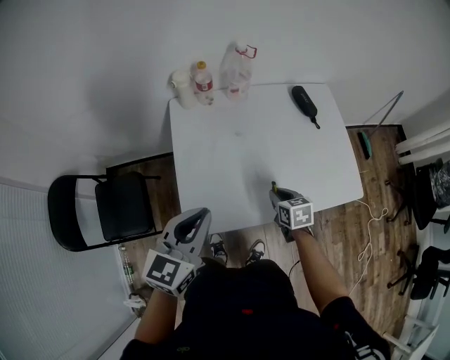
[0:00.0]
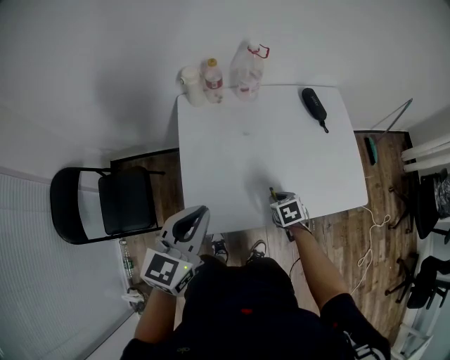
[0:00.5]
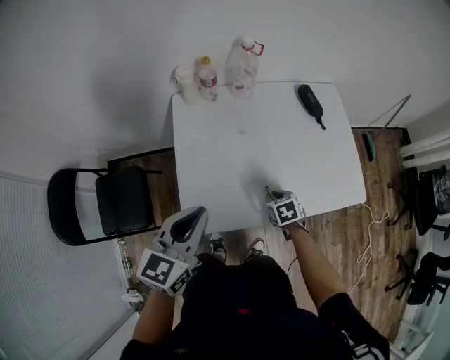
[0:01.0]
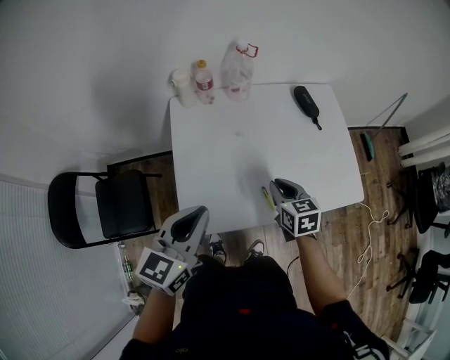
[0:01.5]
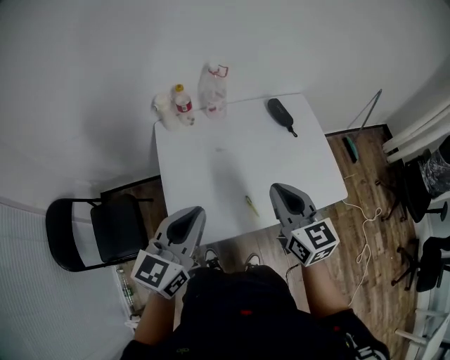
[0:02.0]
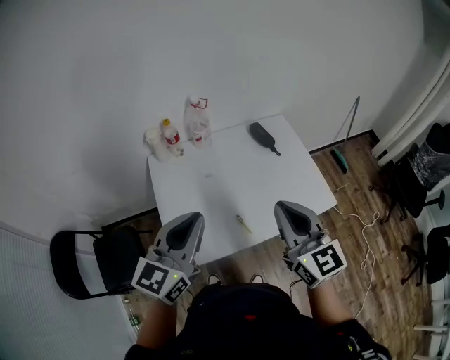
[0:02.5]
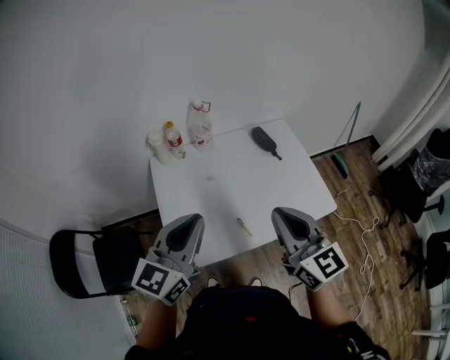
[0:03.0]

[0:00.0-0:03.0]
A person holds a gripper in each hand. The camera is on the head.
0:00.0 to 0:01.5: The right gripper shifts about 10 cm upward.
0:01.5 to 0:03.0: The left gripper travels upward and to the right by about 15 cm, while the right gripper heads upward, covering approximately 25 cm, and tilts its fingers about 40 degrees upward.

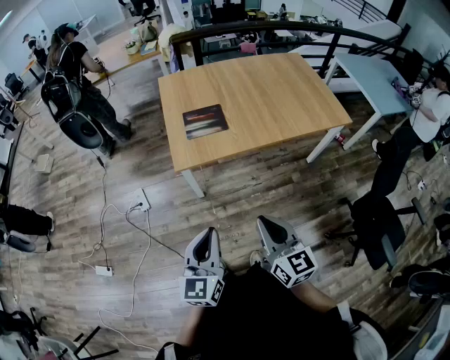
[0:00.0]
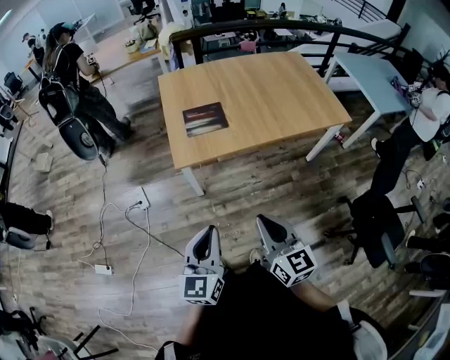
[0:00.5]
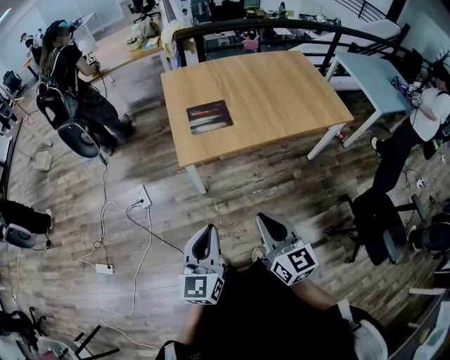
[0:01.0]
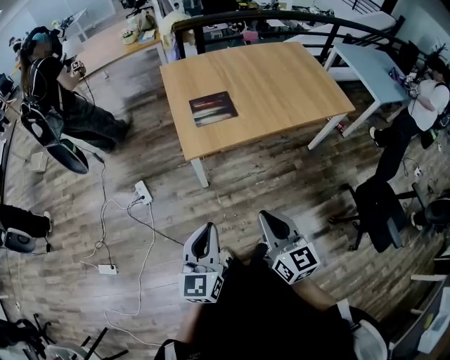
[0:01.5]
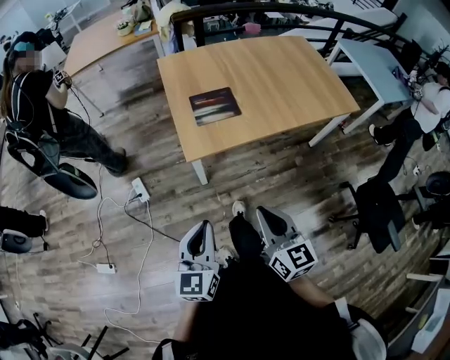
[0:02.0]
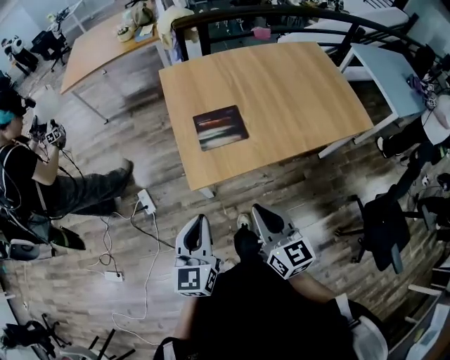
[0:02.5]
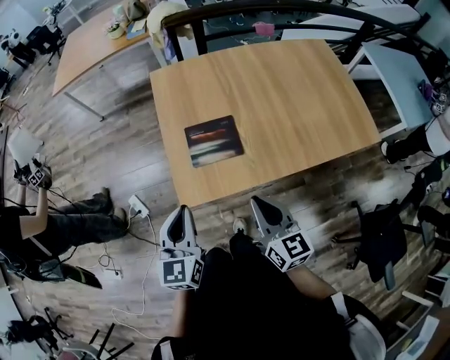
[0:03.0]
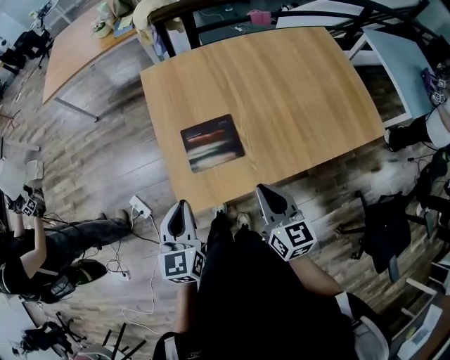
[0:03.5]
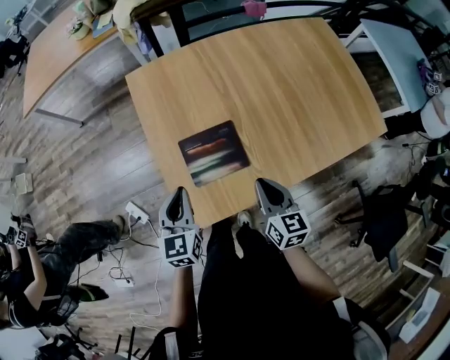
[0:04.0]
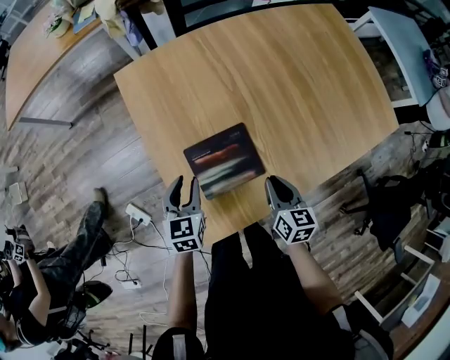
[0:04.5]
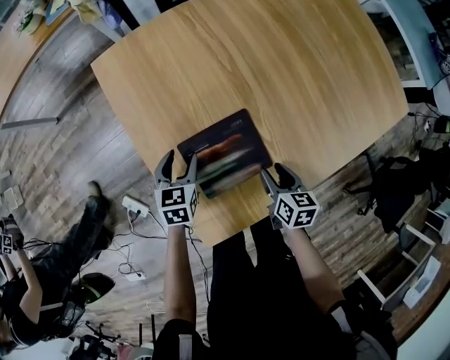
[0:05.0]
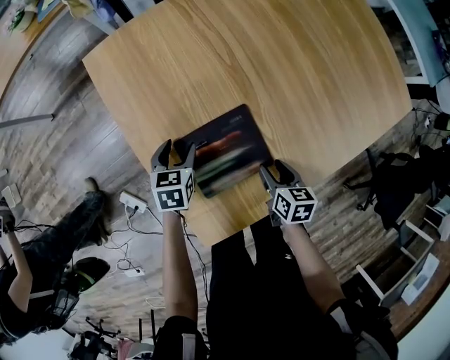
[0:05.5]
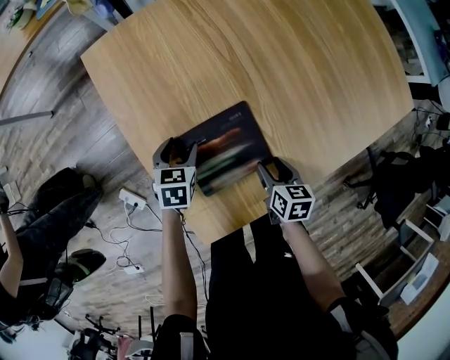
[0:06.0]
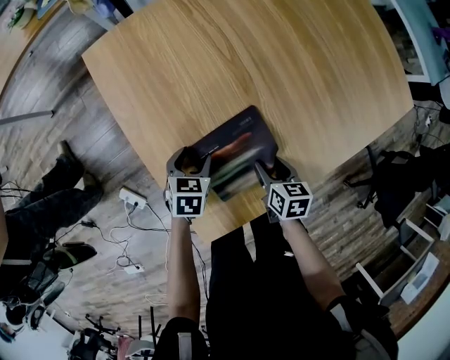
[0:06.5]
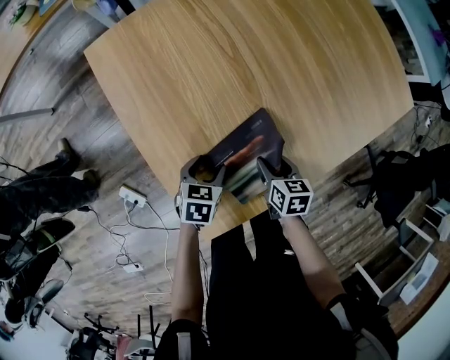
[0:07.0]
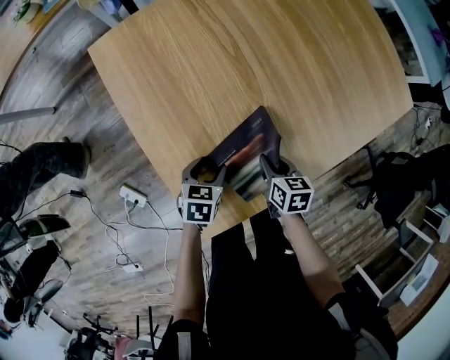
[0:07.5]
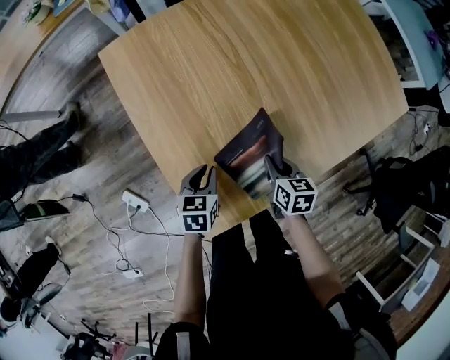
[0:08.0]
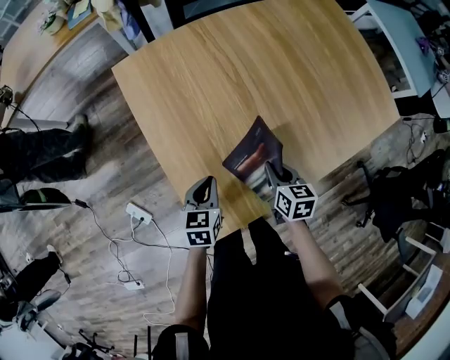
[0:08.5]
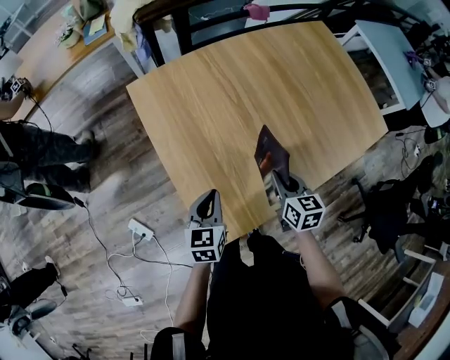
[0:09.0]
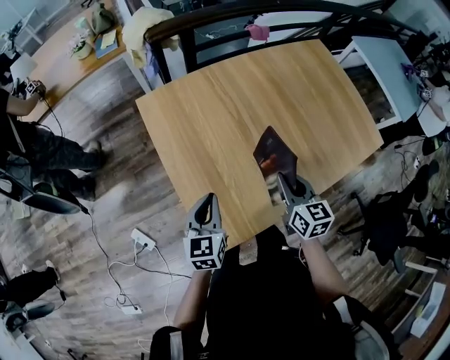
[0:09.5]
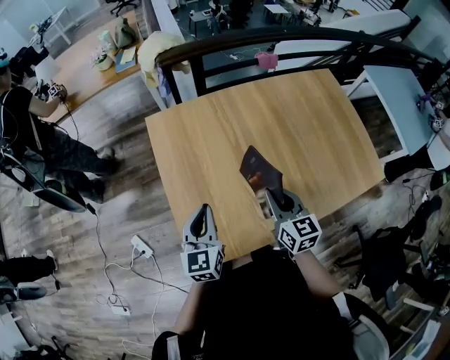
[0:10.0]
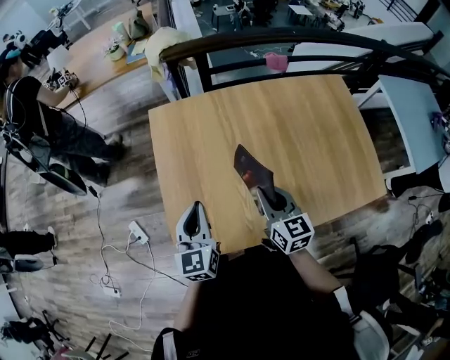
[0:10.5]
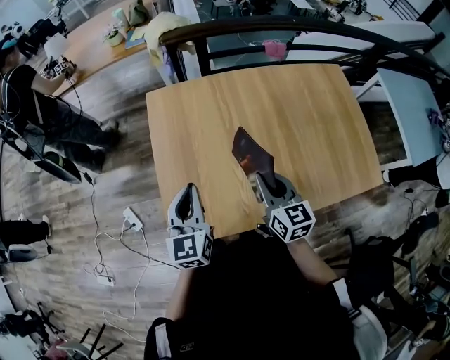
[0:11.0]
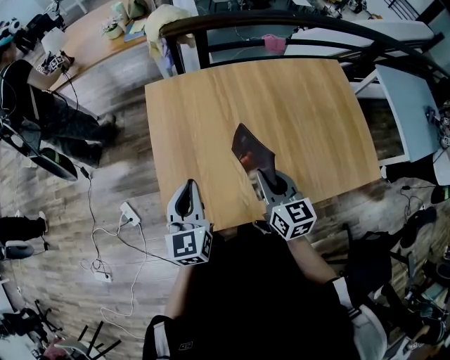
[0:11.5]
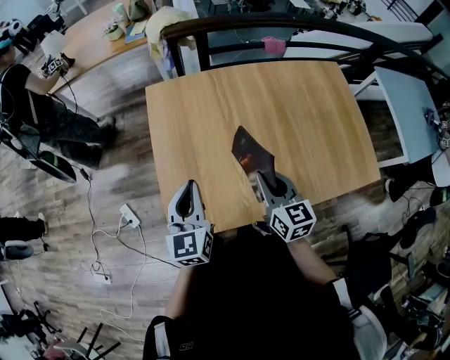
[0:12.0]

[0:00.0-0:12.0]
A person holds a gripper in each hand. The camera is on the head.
0:00.0 to 0:02.0: Both grippers move to the left and forward, about 10 cm.
0:02.0 to 0:04.0: Both grippers are carried forward, some 50 cm.
0:04.0 to 0:06.0: The right gripper shifts roughly 25 cm downward, turns by roughly 30 degrees, and opens up. Meanwhile the left gripper moves downward and forward, some 30 cm, rotates some 30 degrees, and opens.
0:06.0 to 0:08.0: The left gripper heads backward and to the right, covering some 10 cm, and closes. The right gripper closes up.
0:08.0 to 0:10.0: The grippers both shift upward by about 25 cm. The right gripper rotates about 40 degrees; the left gripper angles its fingers upward, by about 30 degrees.
0:10.0 to 0:12.0: The left gripper ends up about 5 cm from where it was.

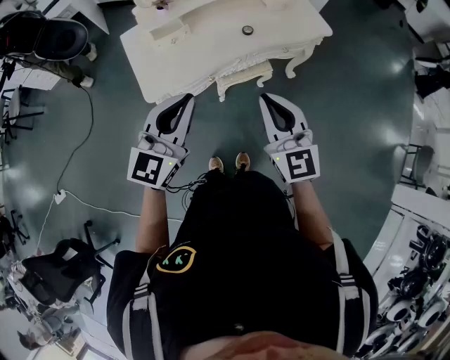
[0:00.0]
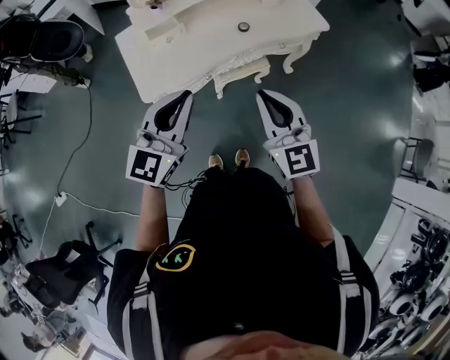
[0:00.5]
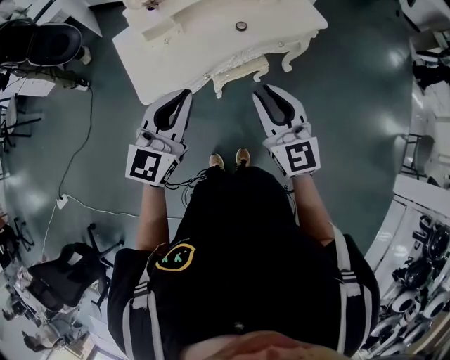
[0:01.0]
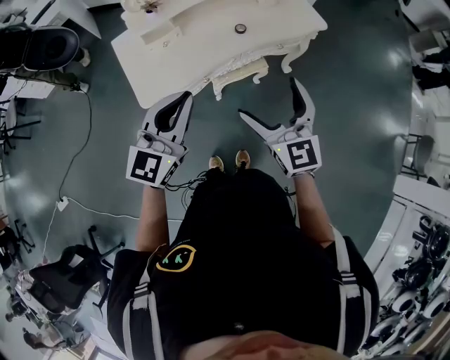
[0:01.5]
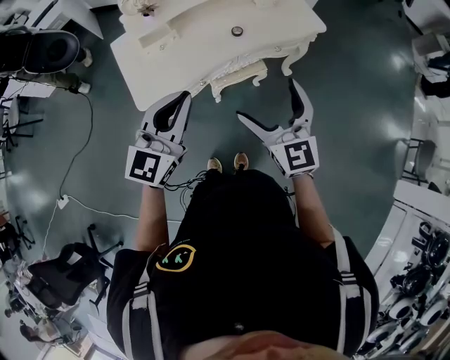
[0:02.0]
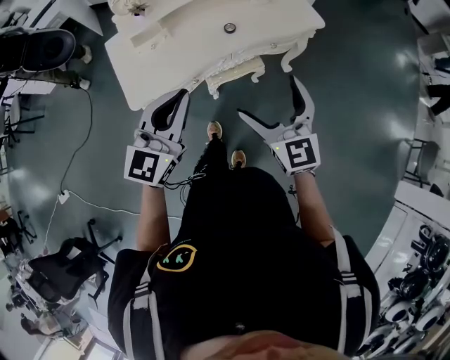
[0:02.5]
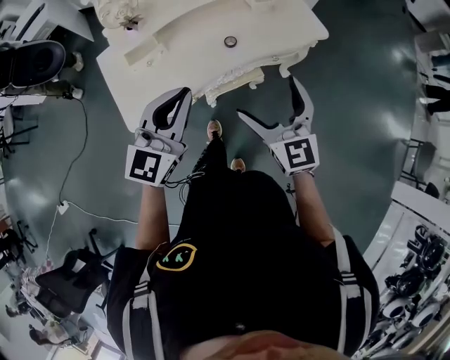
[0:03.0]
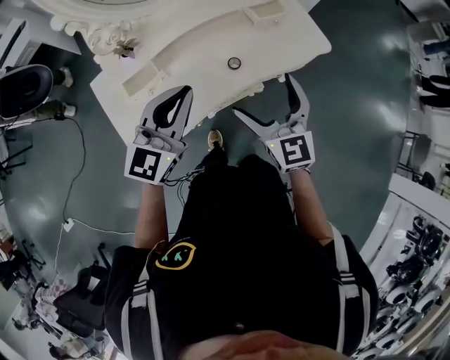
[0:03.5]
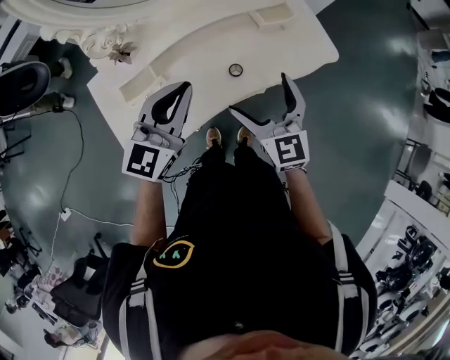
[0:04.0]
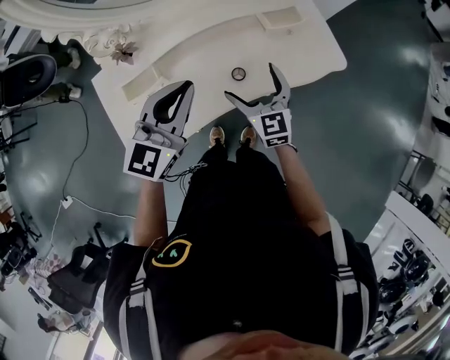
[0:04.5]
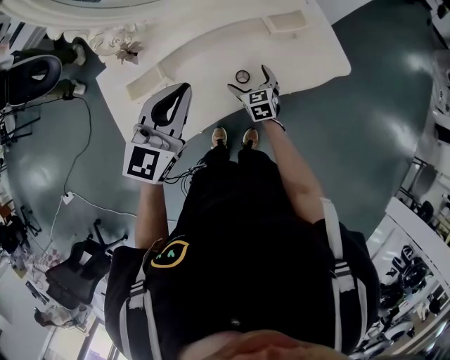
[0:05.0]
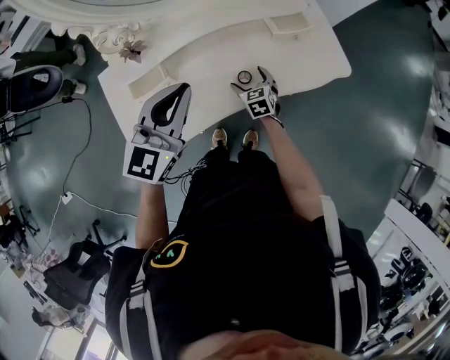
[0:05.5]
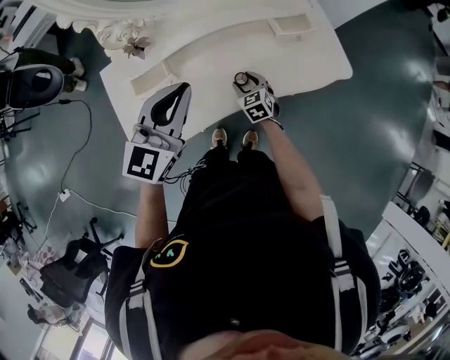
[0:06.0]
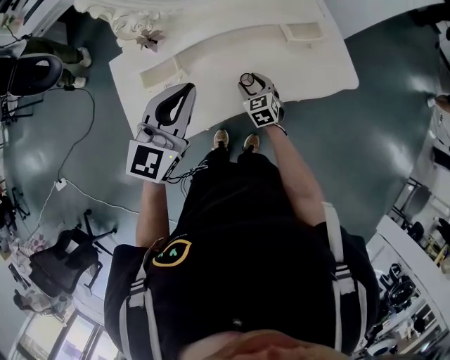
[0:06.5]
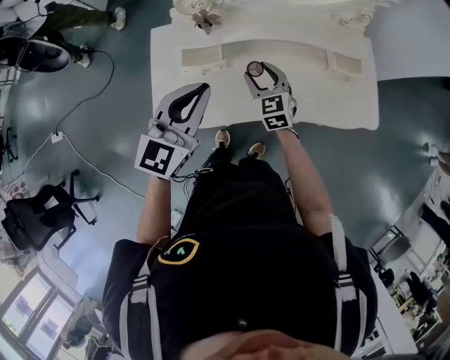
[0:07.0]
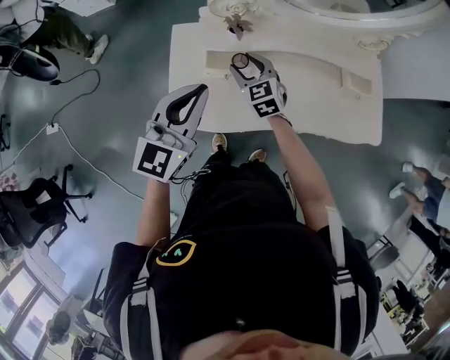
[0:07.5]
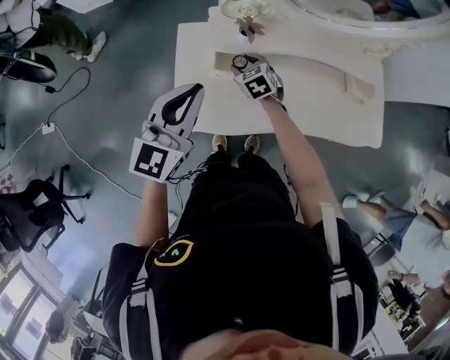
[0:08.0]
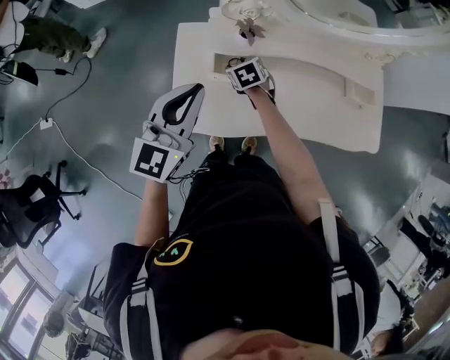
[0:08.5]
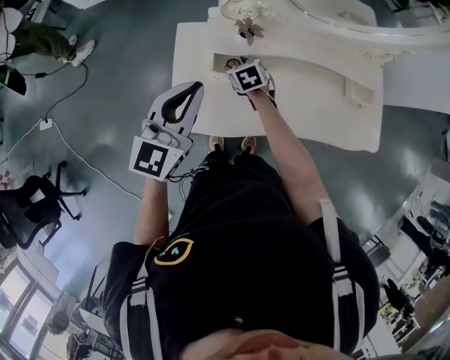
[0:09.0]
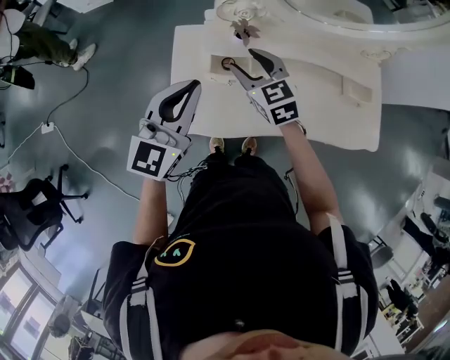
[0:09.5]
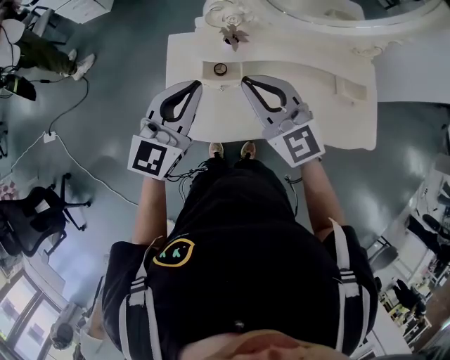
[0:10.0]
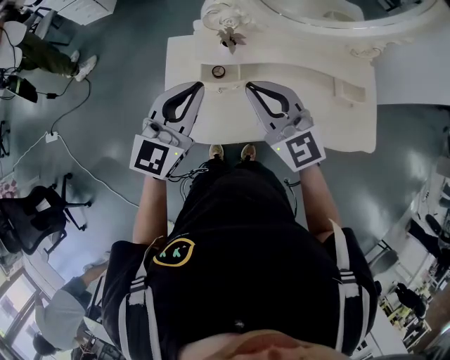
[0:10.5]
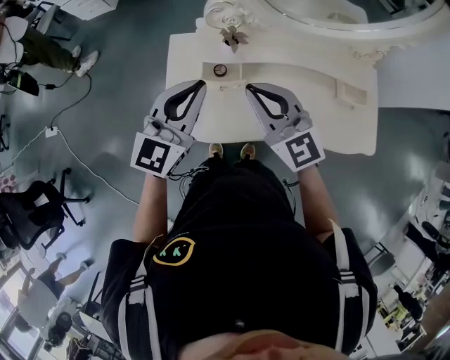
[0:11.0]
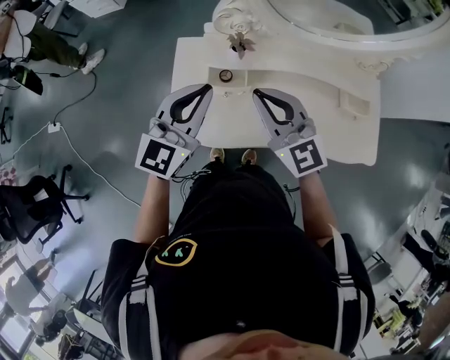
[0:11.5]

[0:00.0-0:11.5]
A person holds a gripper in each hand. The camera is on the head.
0:00.0 to 0:02.0: The left gripper moves approximately 5 cm, while the right gripper moves about 5 cm, and opens.
0:02.0 to 0:04.0: The two grippers go about 30 cm forward.
0:04.0 to 0:06.0: The right gripper moves downward, some 25 cm, rotates about 30 degrees, and closes.
0:06.0 to 0:07.5: The right gripper is displaced to the left and upward by approximately 30 cm, and rotates about 30 degrees; the left gripper travels to the left by about 20 cm, and rotates about 20 degrees.
0:07.5 to 0:09.5: The right gripper is displaced upward by approximately 10 cm.
0:09.5 to 0:11.5: The right gripper moves upward and backward, about 15 cm, swivels about 30 degrees, and closes, while the left gripper travels to the right by approximately 5 cm.
